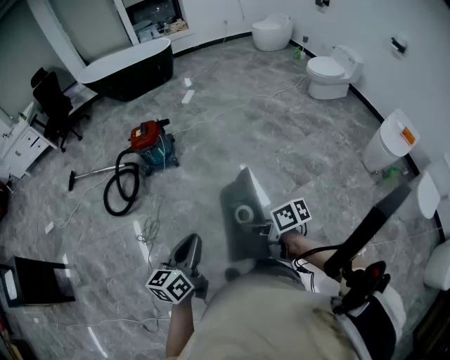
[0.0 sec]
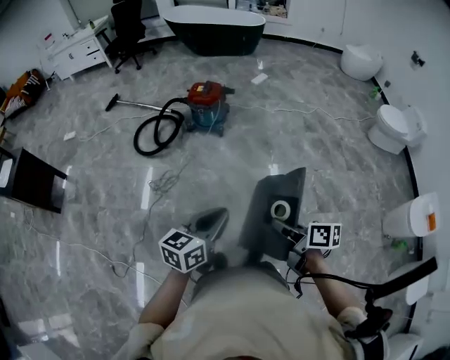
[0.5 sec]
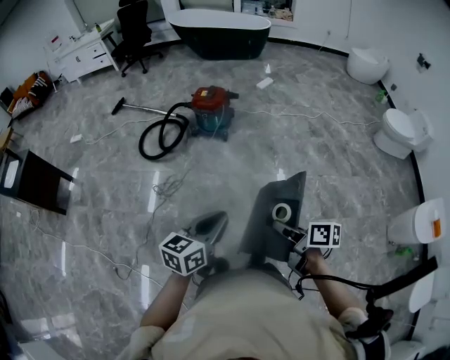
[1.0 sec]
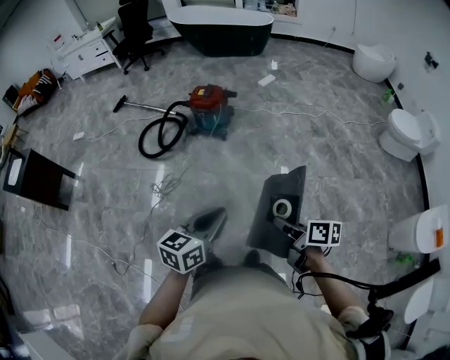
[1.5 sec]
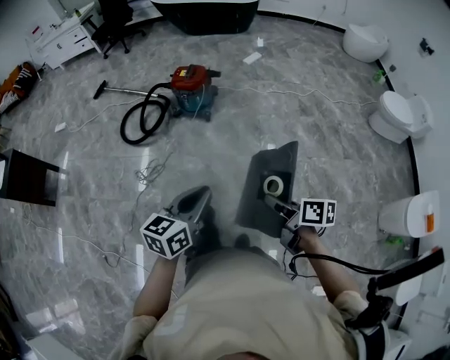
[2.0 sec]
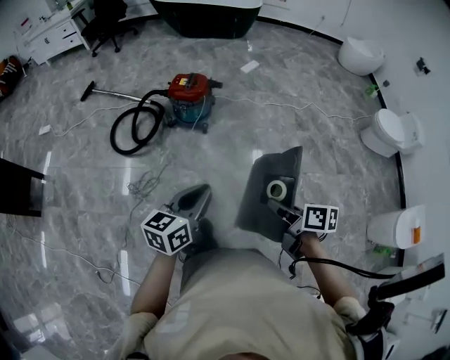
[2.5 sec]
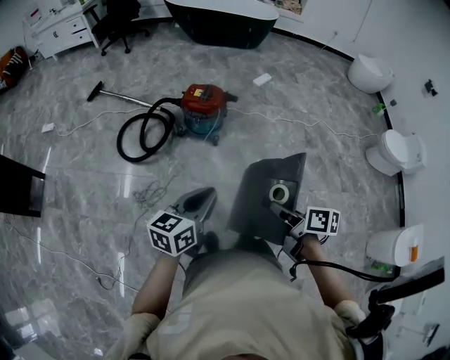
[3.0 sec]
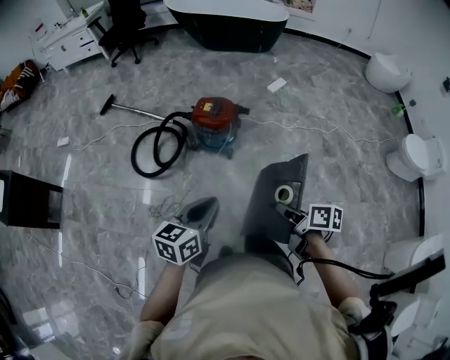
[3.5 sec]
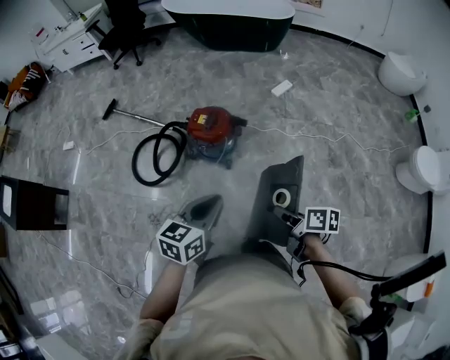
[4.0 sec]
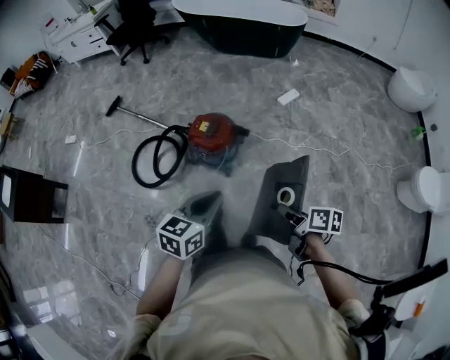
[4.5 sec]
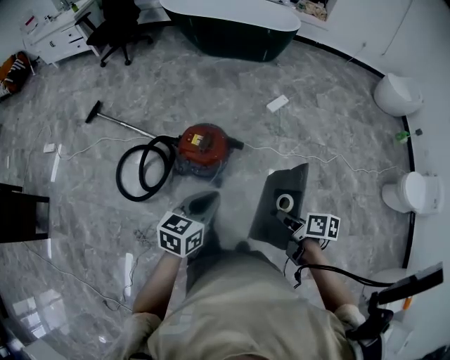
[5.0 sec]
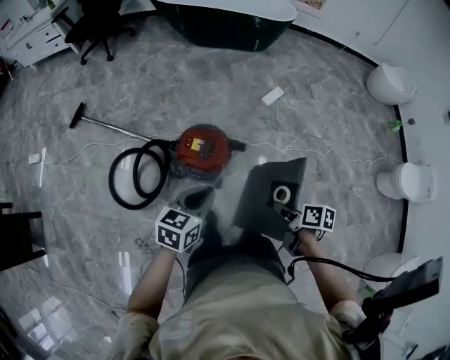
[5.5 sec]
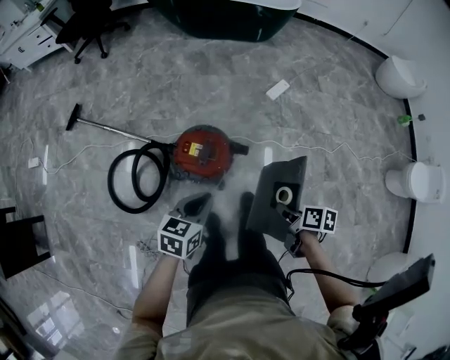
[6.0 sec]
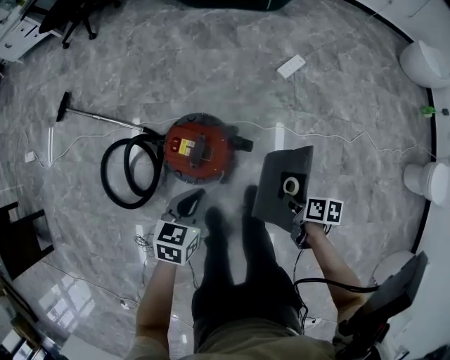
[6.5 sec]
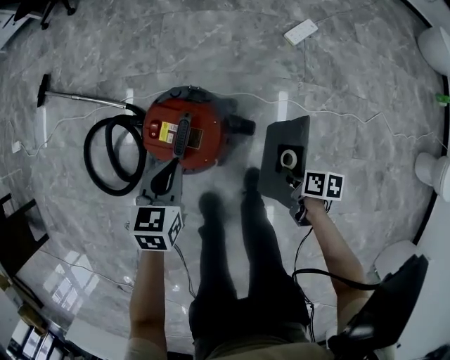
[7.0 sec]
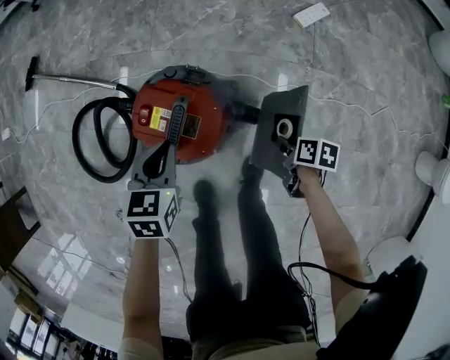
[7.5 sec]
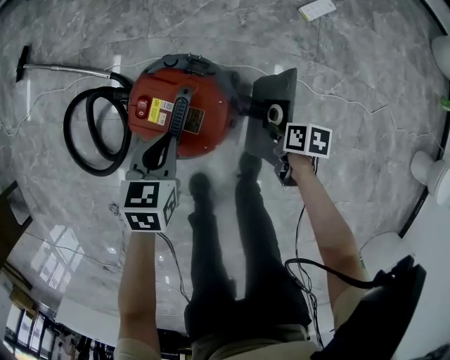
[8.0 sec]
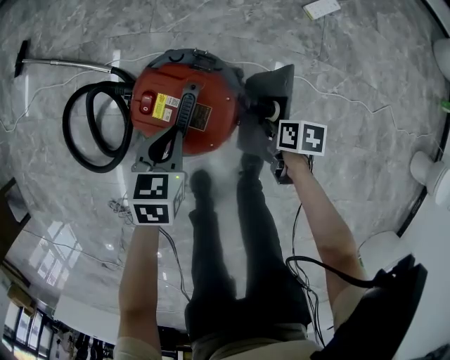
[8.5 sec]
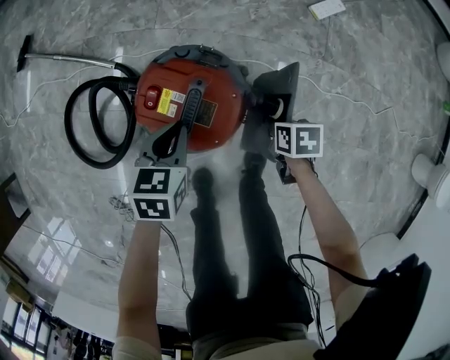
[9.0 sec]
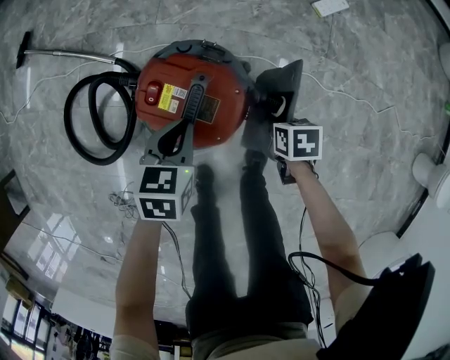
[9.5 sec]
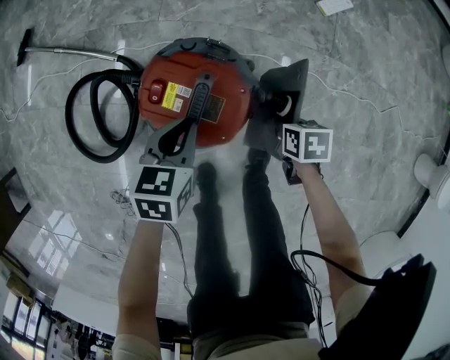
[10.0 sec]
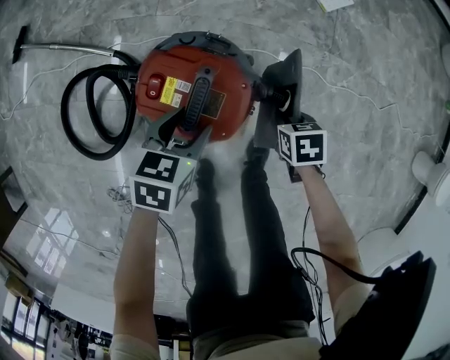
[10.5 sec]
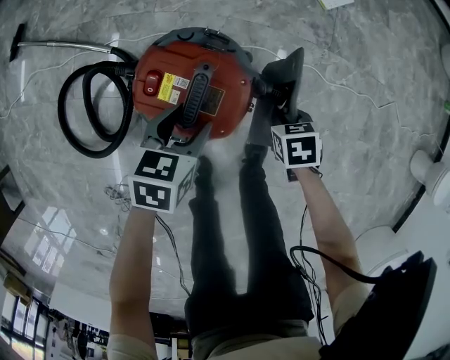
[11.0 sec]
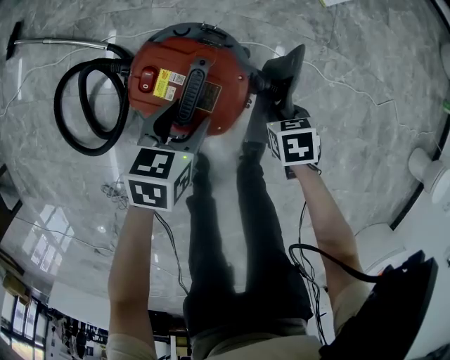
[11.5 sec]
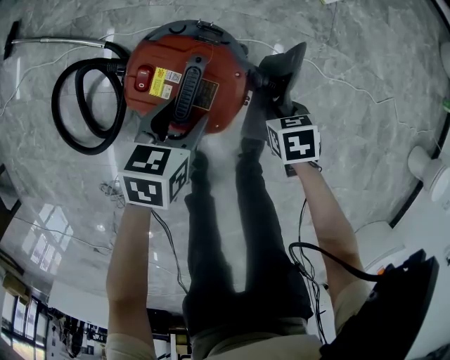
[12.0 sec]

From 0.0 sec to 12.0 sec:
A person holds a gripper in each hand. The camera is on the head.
From 0.0 sec to 2.0 sec: The left gripper shifts by some 15 cm.
From 2.0 sec to 4.0 sec: The left gripper ends up some 40 cm from where it was.
From 4.0 sec to 6.0 sec: The left gripper moves roughly 35 cm.
From 6.0 sec to 8.0 sec: The left gripper travels downward by approximately 30 cm, and rotates roughly 20 degrees.
From 10.0 sec to 12.0 sec: The left gripper opens up.

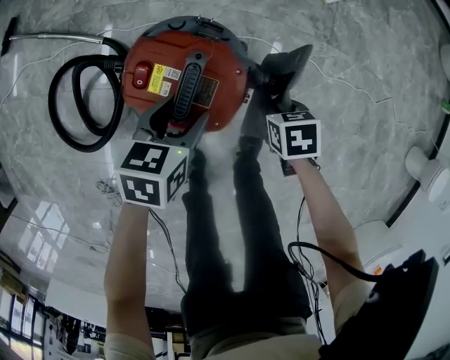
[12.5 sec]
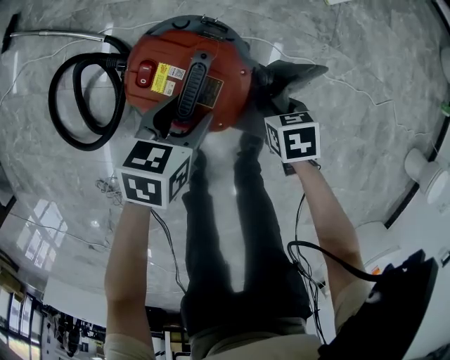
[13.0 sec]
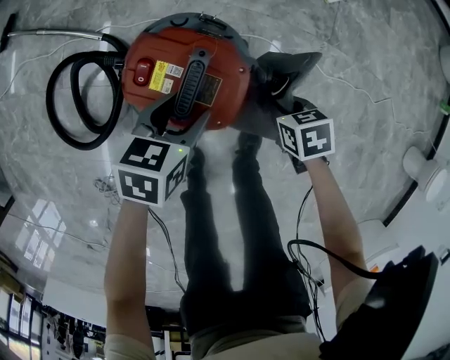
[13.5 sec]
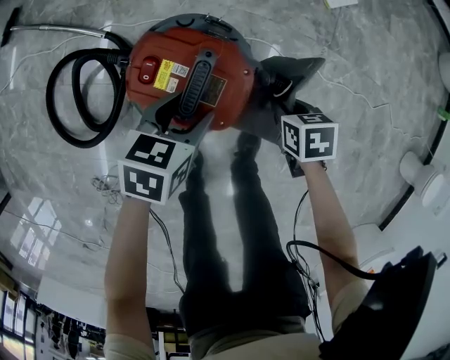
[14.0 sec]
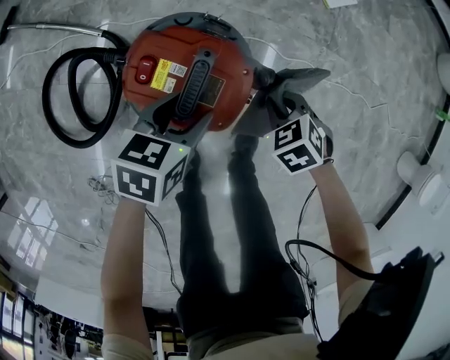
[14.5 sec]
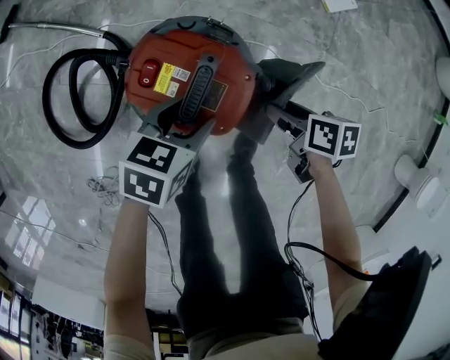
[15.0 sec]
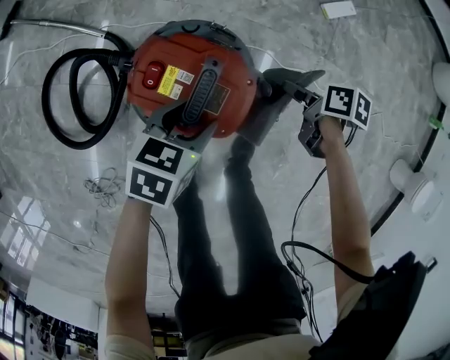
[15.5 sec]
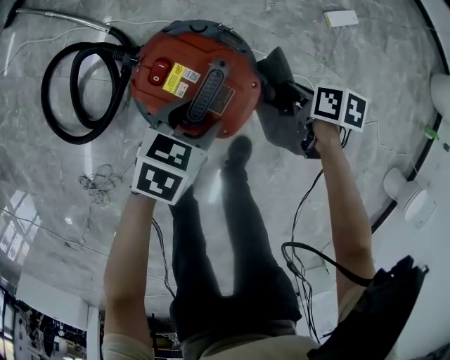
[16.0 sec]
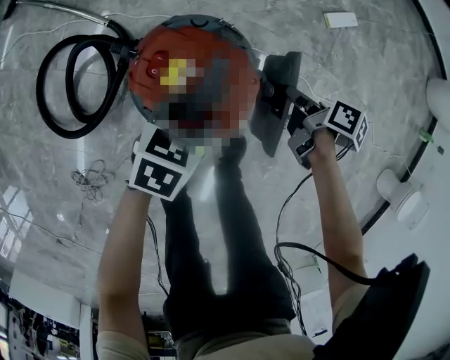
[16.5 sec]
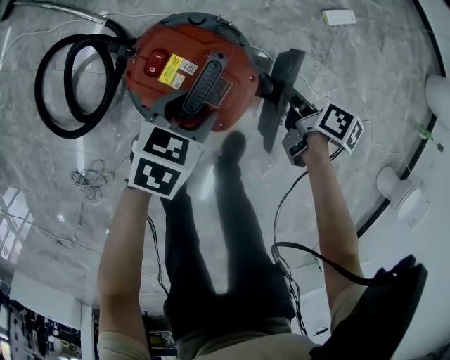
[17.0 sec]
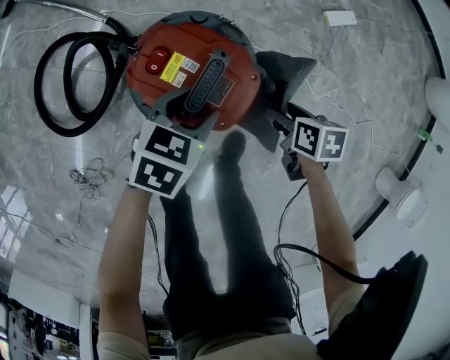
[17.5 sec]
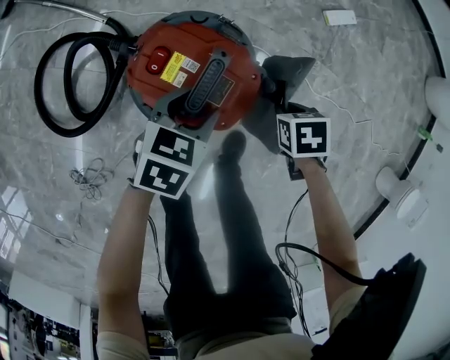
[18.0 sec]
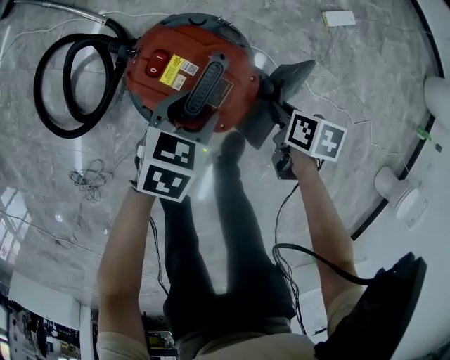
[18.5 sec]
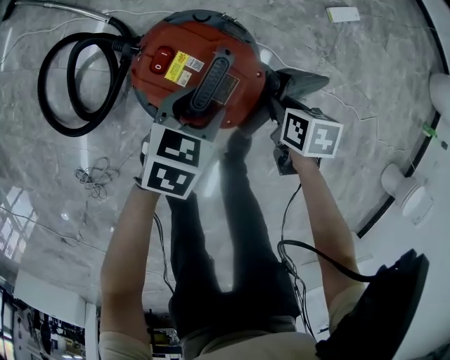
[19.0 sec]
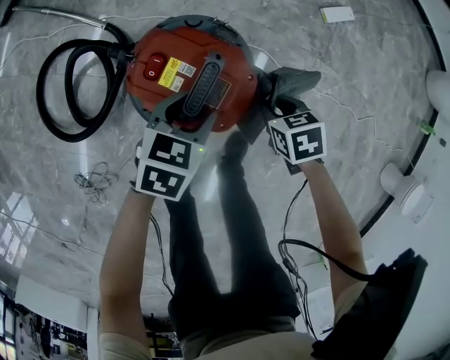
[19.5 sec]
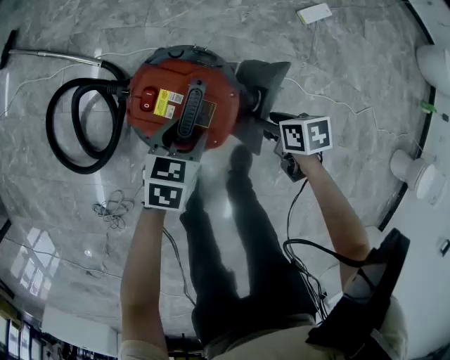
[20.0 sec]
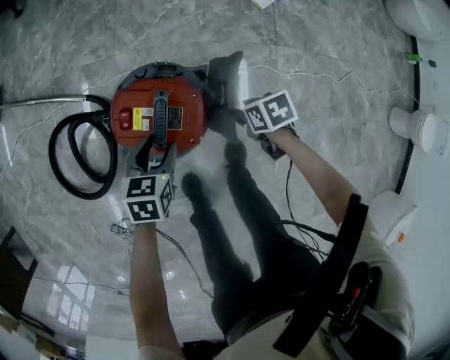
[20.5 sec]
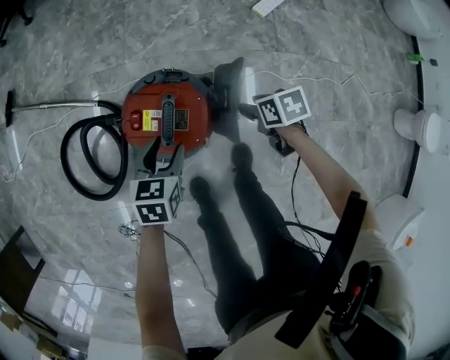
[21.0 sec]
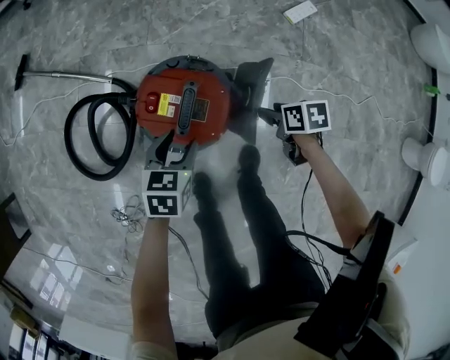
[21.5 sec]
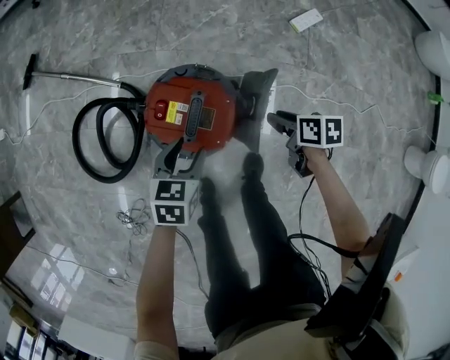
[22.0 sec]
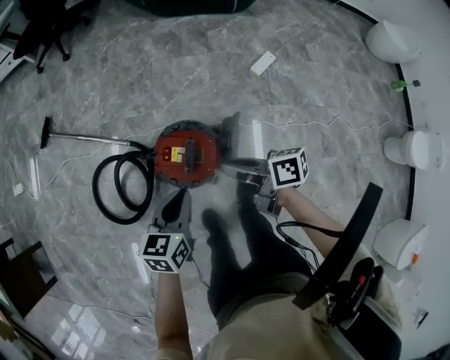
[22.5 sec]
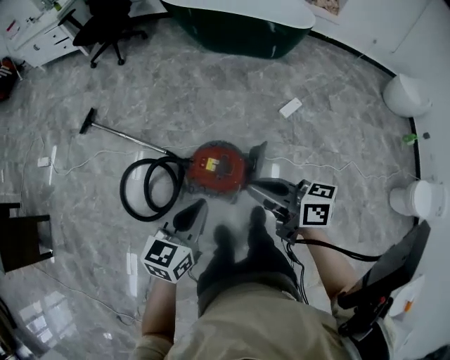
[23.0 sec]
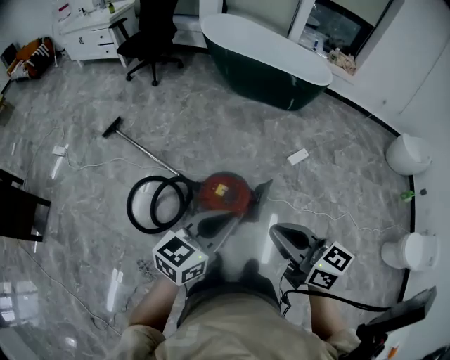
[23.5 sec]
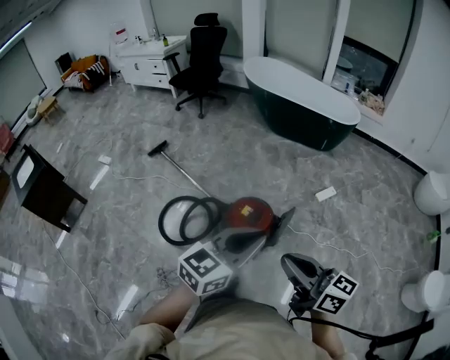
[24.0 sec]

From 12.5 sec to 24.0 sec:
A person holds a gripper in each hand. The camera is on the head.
From 20.0 sec to 22.0 sec: The left gripper is displaced upward by roughly 5 cm.
From 22.0 sec to 24.0 sec: The left gripper goes some 60 cm upward, tips its fingers upward by some 40 degrees, and closes its fingers.

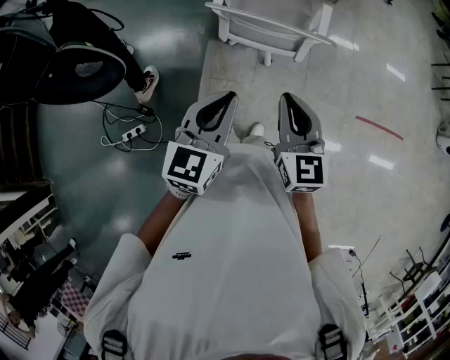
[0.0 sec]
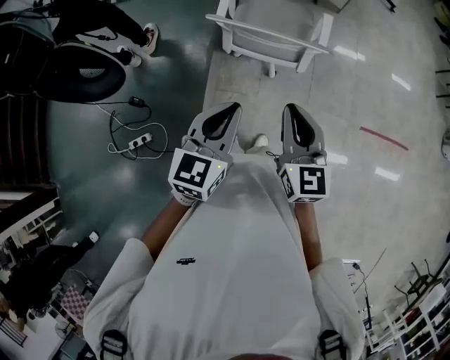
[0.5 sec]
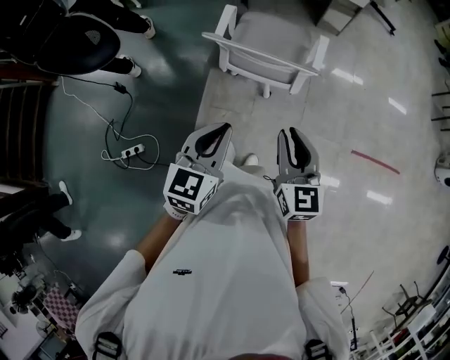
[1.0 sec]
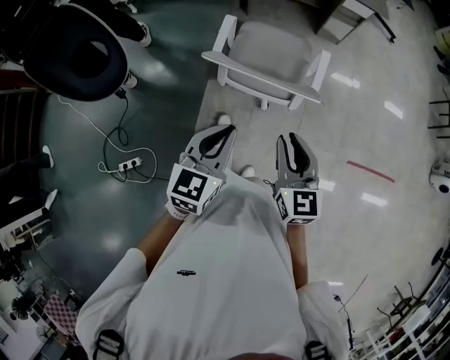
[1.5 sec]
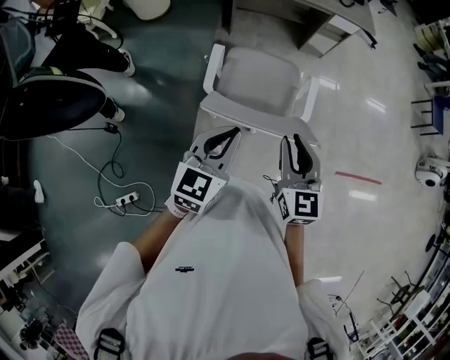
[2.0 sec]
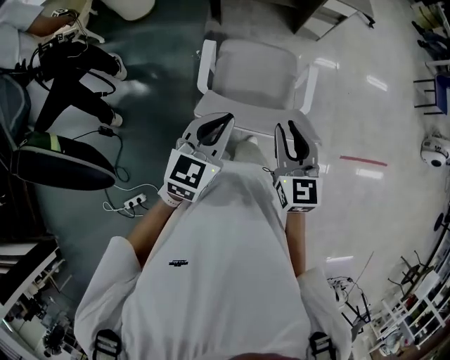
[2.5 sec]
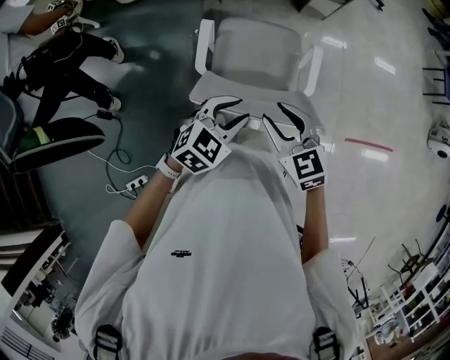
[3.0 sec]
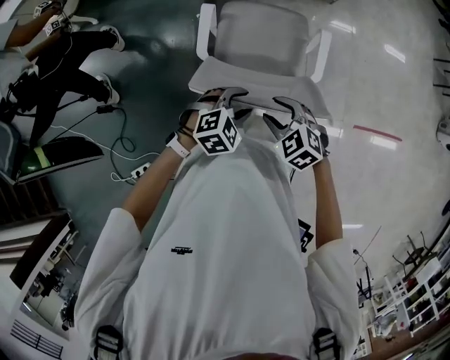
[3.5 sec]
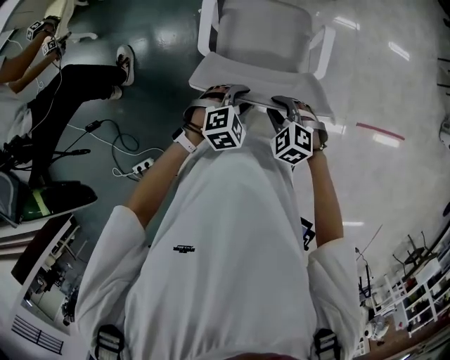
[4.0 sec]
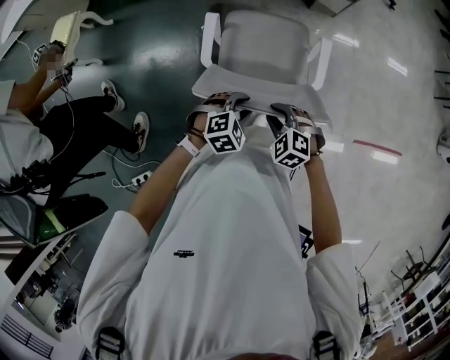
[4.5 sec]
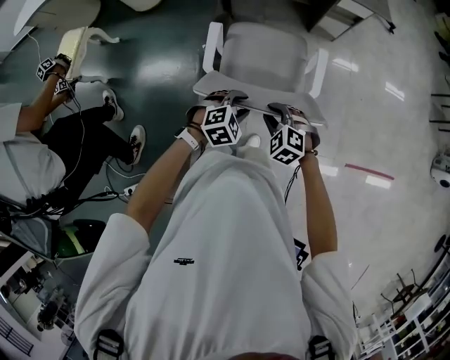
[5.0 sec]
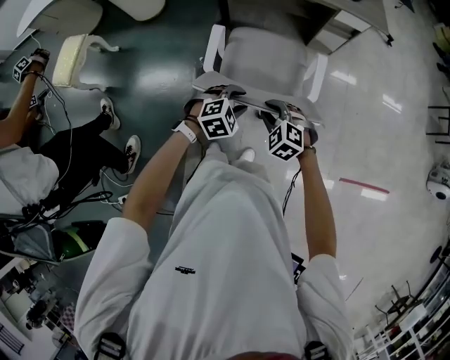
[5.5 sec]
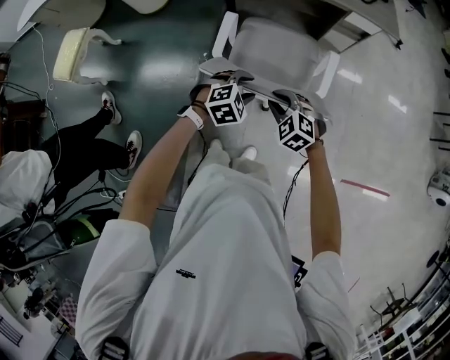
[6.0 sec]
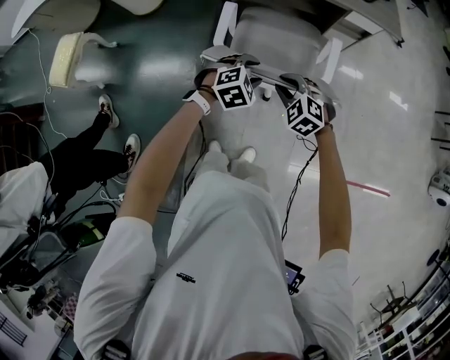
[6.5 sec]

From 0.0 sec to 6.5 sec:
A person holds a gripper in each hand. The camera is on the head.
From 0.0 sec to 2.0 sec: Both grippers move forward, approximately 25 cm.
From 2.0 sec to 4.5 sec: Both grippers travel together downward, about 20 cm. The right gripper points its fingers approximately 40 degrees further downward. Meanwhile the left gripper tilts its fingers approximately 40 degrees downward, and opens its fingers.
From 4.5 sec to 6.5 sec: The two grippers go about 25 cm forward.
